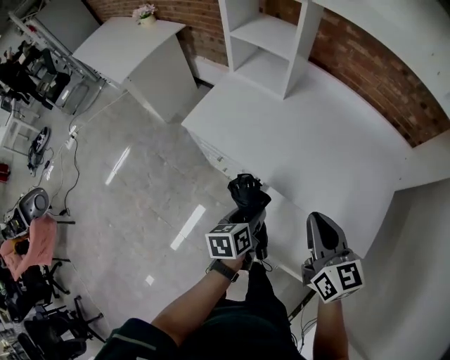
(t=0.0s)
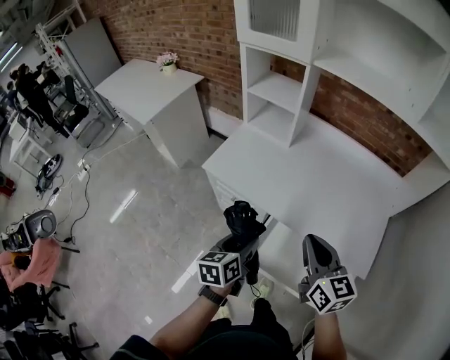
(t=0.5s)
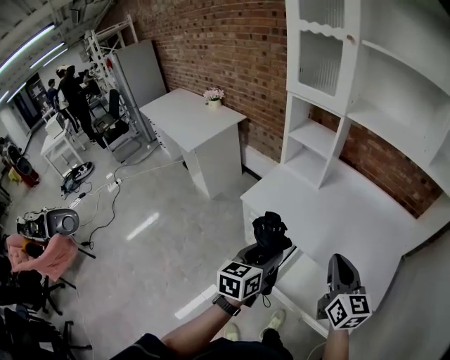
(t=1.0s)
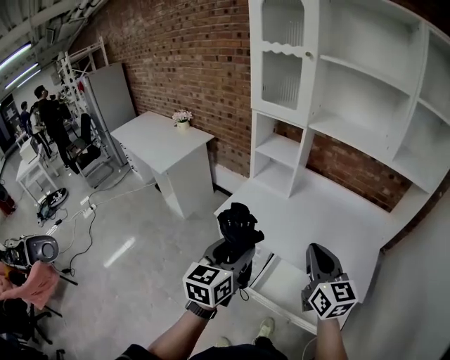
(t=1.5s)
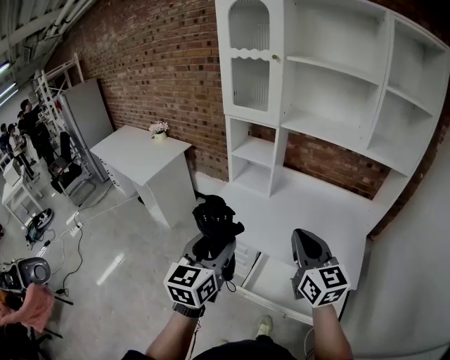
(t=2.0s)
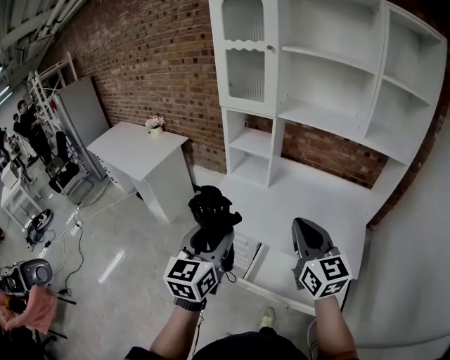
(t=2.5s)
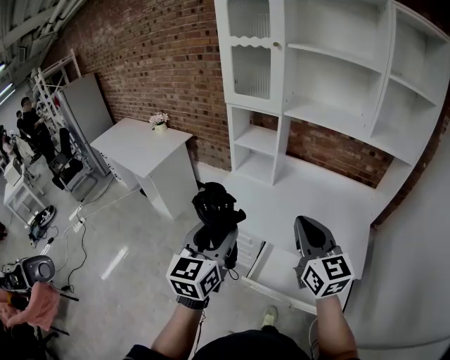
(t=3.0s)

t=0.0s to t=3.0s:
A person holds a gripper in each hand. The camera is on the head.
t=0.0s to t=1.5s: The left gripper moves upward and to the left, roughly 35 cm, and swivels approximately 40 degrees. The right gripper is displaced upward and to the left by some 20 cm.
t=1.5s to t=3.0s: Both grippers move upward, approximately 5 cm.

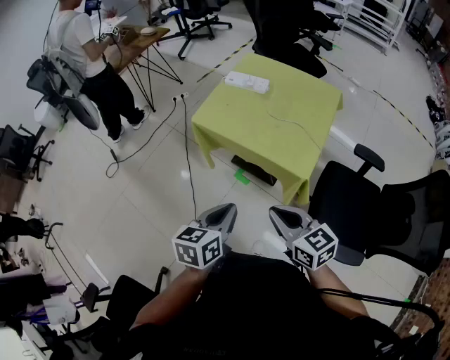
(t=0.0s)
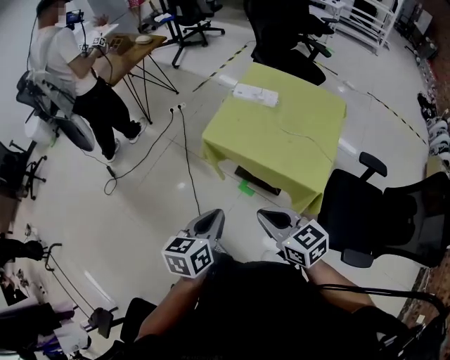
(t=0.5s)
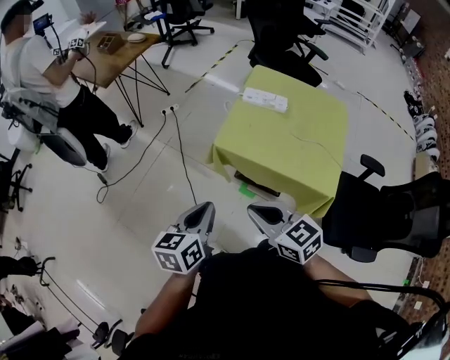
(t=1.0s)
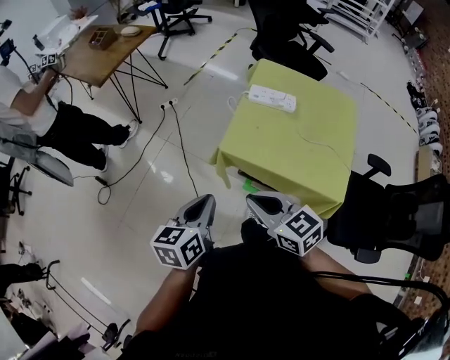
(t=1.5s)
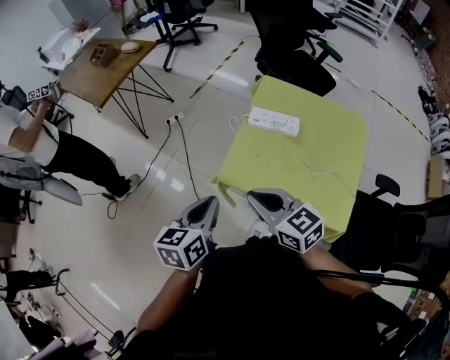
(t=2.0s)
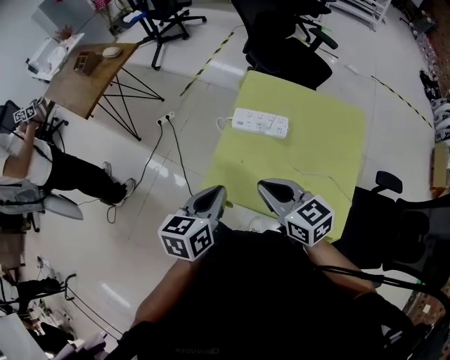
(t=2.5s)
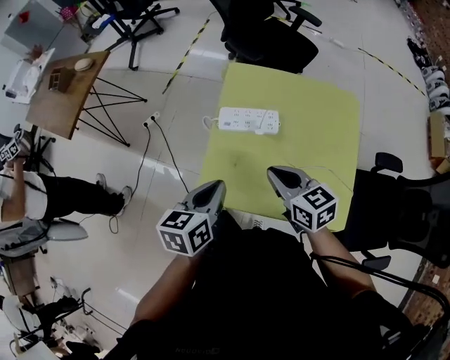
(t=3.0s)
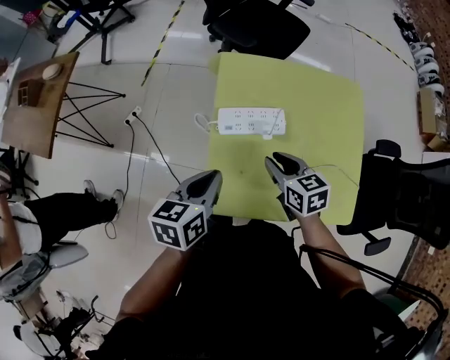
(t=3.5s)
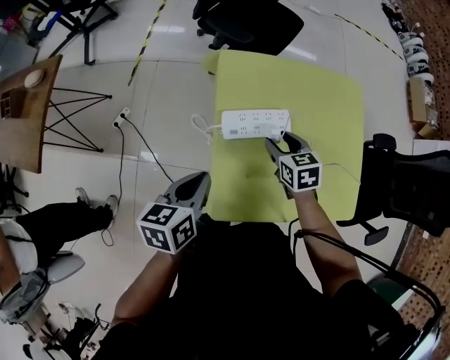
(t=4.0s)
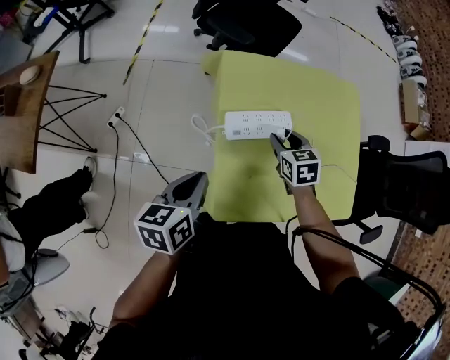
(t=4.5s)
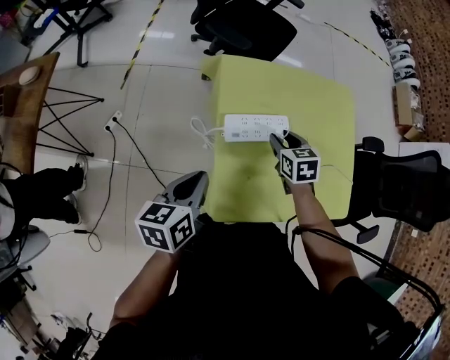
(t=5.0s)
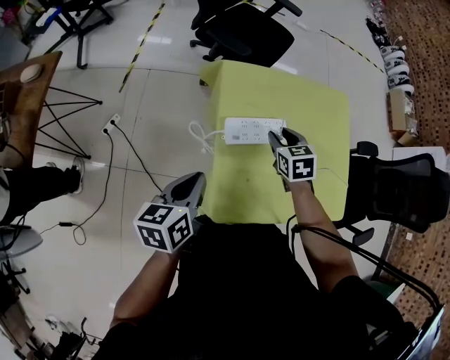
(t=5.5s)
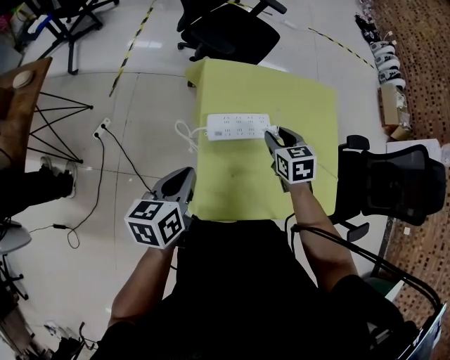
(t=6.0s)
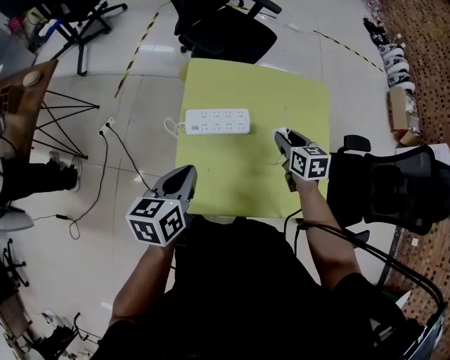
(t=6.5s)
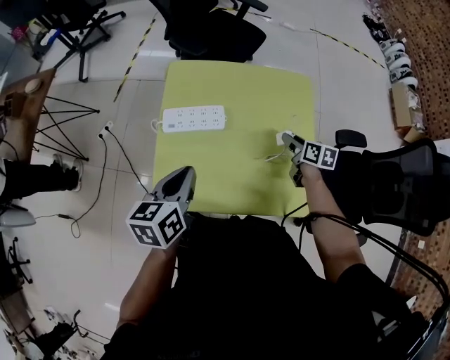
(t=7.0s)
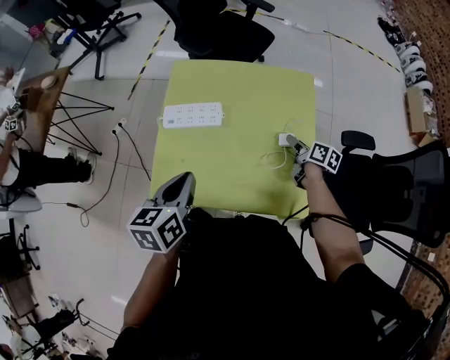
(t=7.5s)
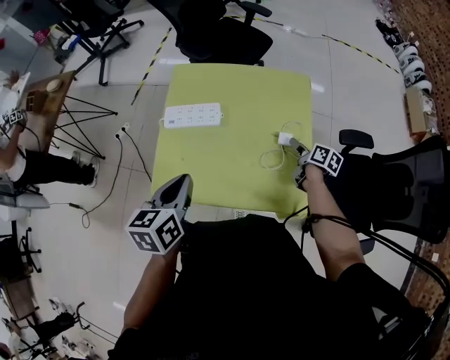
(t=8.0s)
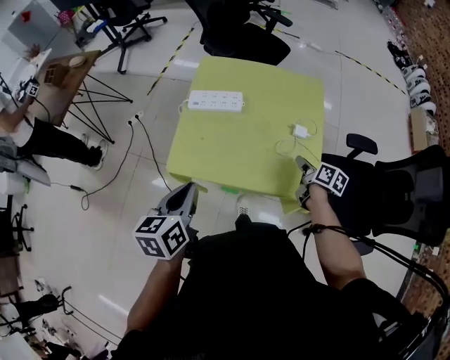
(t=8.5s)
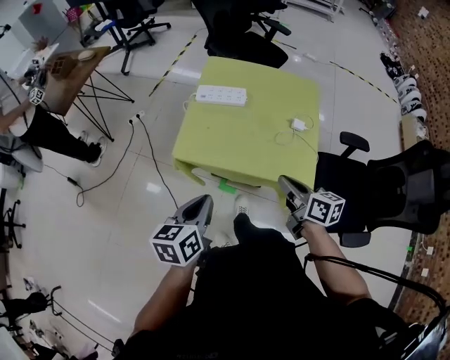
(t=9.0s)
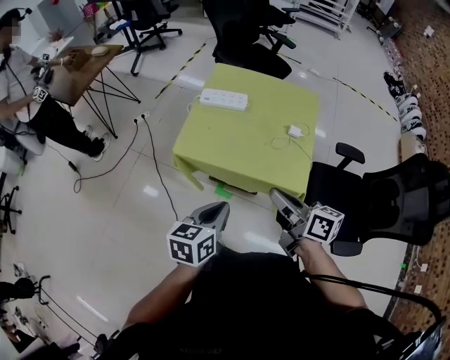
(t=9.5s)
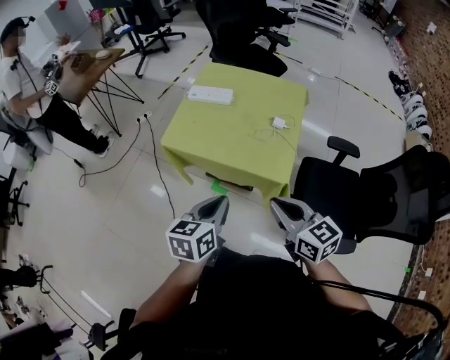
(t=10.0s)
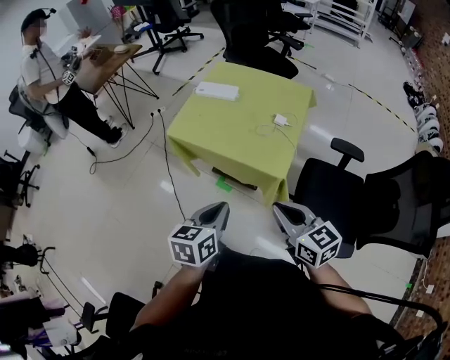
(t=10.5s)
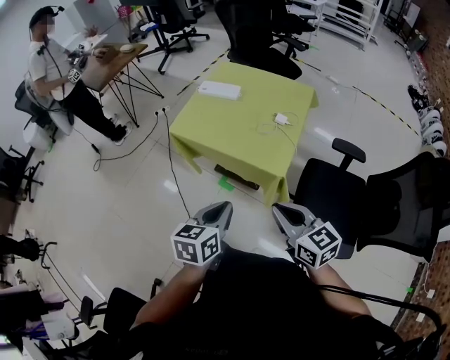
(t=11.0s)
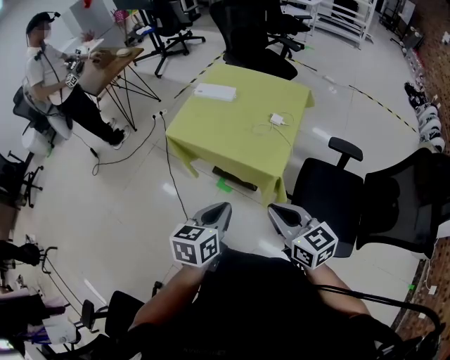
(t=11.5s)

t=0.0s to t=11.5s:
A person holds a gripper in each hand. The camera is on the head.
t=0.0s to t=2.0s: Both grippers move forward and to the left, some 40 cm.
t=2.0s to t=4.0s: The right gripper moves some 40 cm, changes its angle by roughly 50 degrees, and opens up, while the left gripper ends up about 30 cm from where it was, and turns by approximately 30 degrees.
t=4.0s to t=6.0s: The right gripper ends up approximately 5 cm from where it was.
t=6.0s to t=7.5s: Both grippers travel together to the right, some 25 cm. The right gripper rolls clockwise, seen from behind, by roughly 50 degrees.
t=7.5s to t=9.5s: The left gripper shifts roughly 30 cm backward; the right gripper travels backward, upward and to the left by about 50 cm, turns by approximately 40 degrees, and closes.
t=9.5s to t=11.5s: The right gripper moves backward and to the right, roughly 20 cm, and rotates roughly 40 degrees; the left gripper goes approximately 20 cm to the right and backward.

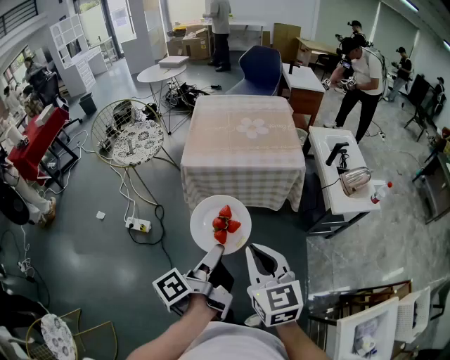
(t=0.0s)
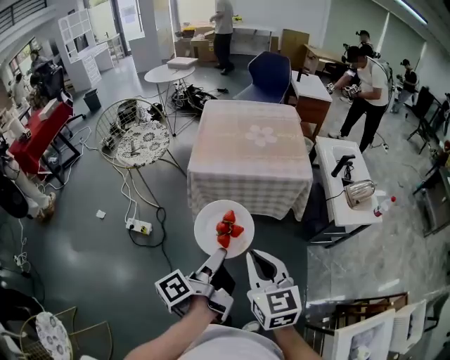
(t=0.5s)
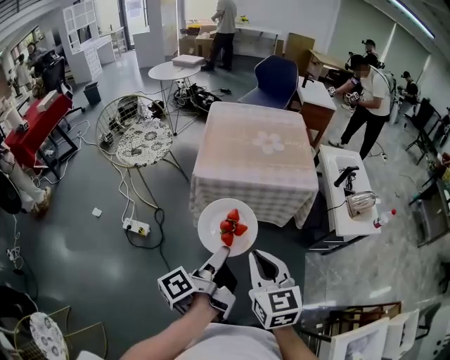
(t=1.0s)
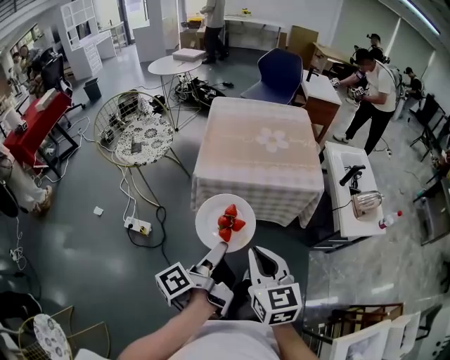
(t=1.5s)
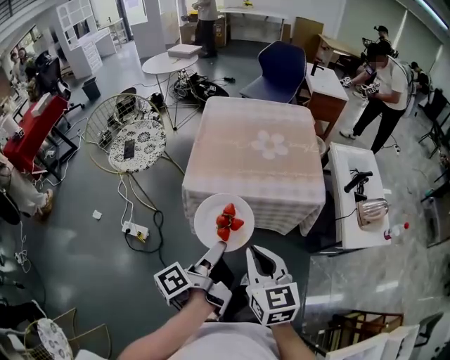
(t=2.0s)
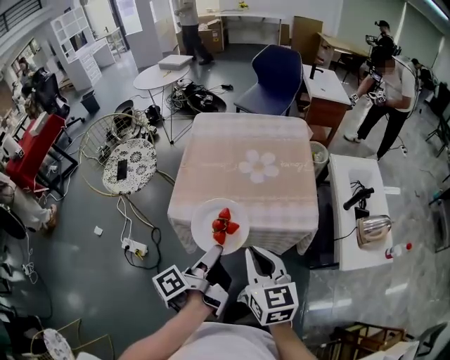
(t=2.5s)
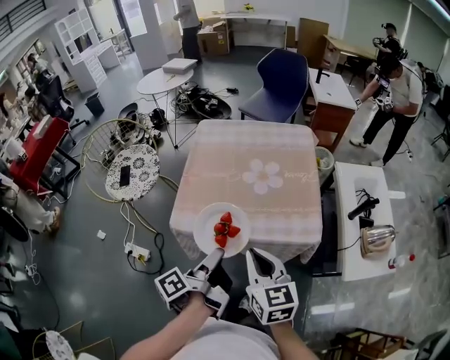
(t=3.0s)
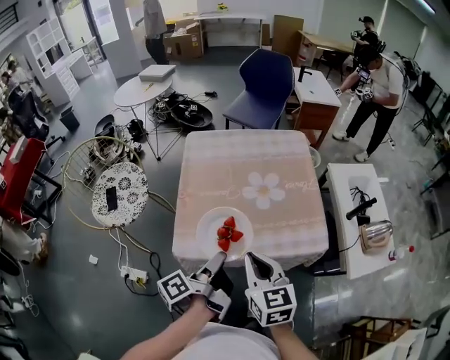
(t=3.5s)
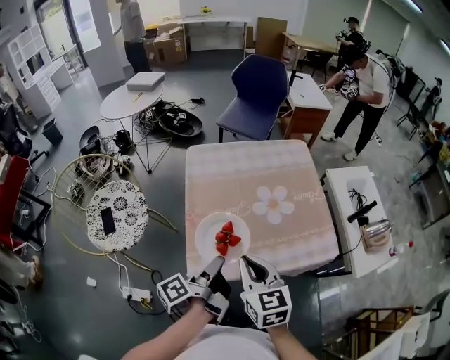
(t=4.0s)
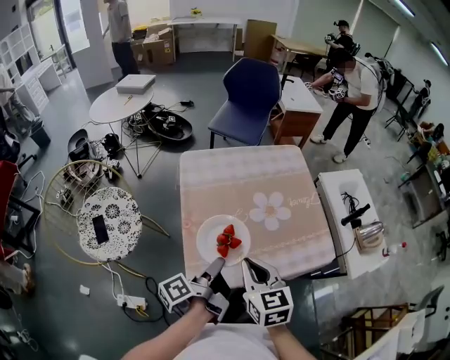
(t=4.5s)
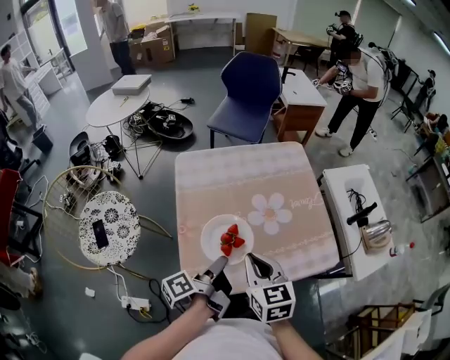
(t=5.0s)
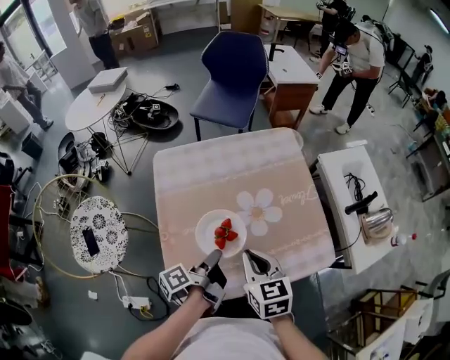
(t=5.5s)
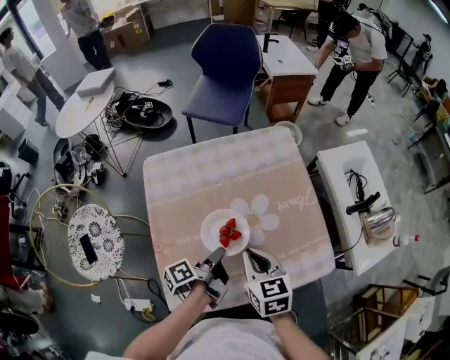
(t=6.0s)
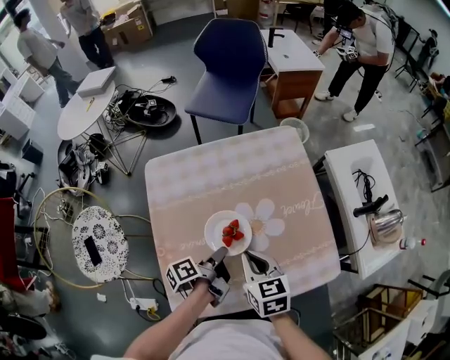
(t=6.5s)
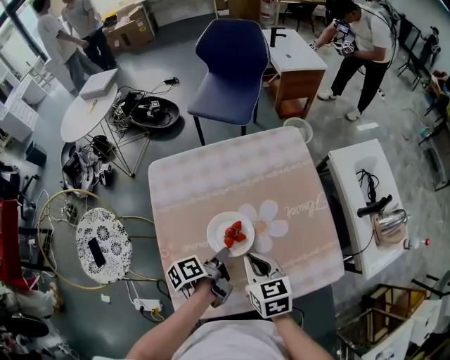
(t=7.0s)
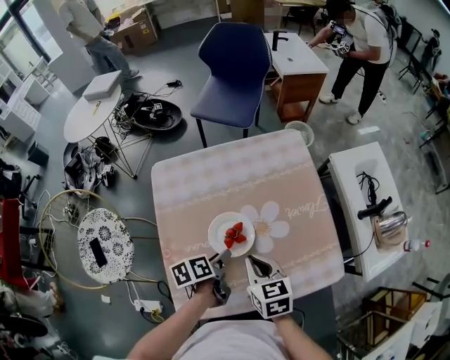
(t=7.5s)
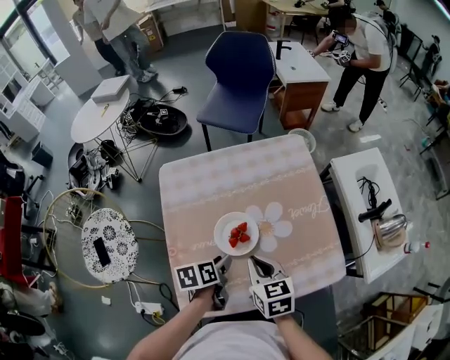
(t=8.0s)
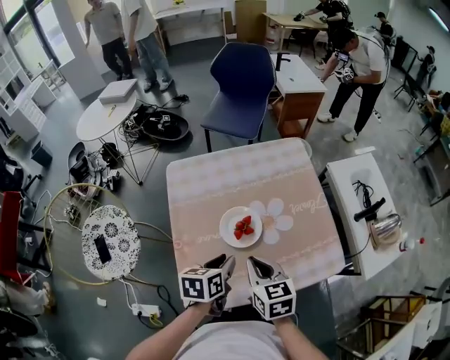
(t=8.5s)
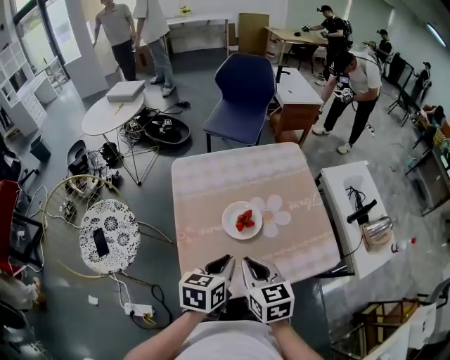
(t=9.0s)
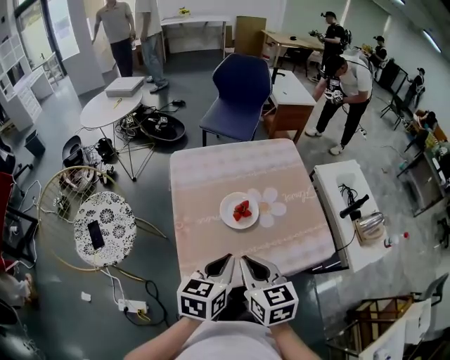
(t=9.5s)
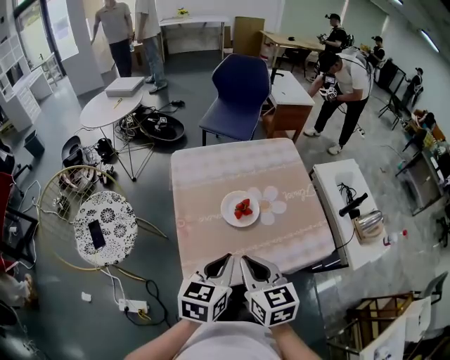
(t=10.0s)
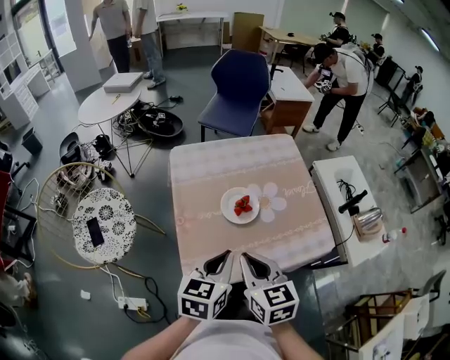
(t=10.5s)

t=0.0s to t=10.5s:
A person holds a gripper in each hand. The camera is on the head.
t=0.0s to t=2.0s: The right gripper shifts by about 20 cm.
t=2.0s to t=4.0s: The right gripper ends up some 30 cm from where it was.
t=4.0s to t=6.5s: The right gripper shifts by about 25 cm.
t=6.5s to t=8.5s: The right gripper ends up approximately 10 cm from where it was.
t=8.5s to t=10.5s: The right gripper shifts by some 15 cm.

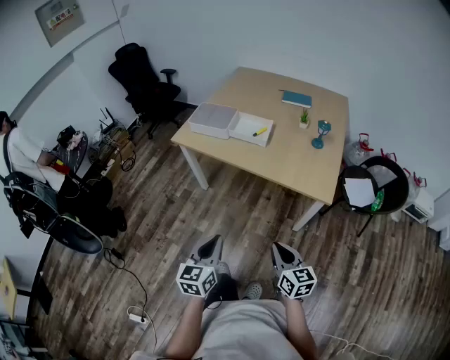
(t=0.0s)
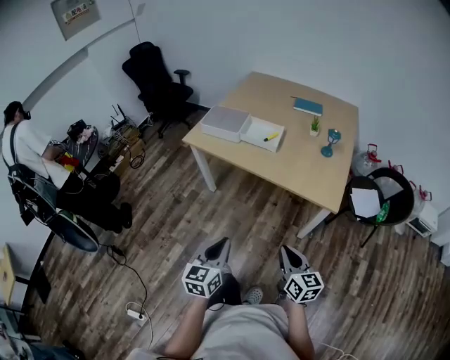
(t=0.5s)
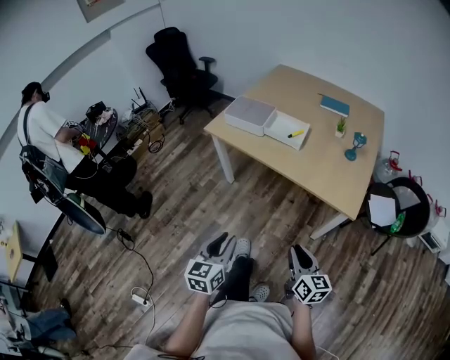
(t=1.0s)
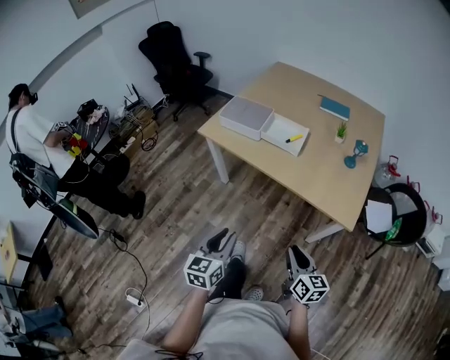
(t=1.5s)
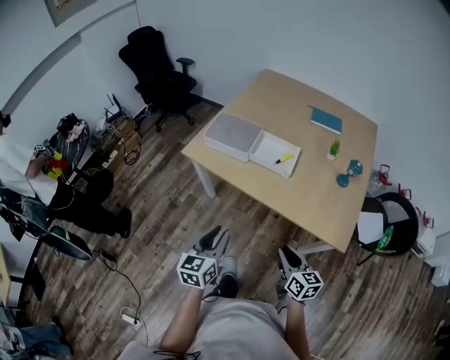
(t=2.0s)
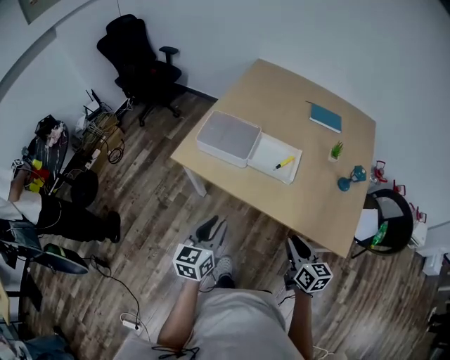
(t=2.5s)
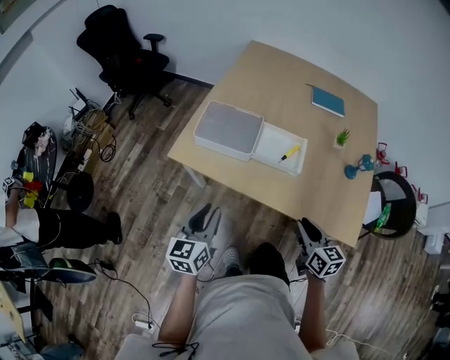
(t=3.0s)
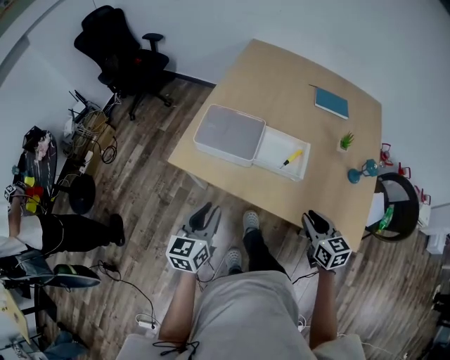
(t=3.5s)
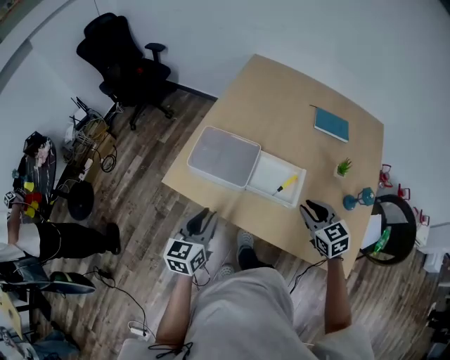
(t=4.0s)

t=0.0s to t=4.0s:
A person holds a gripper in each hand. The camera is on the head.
t=0.0s to t=2.0s: The grippers both shift forward by roughly 20 cm. The left gripper opens up. Meanwhile the right gripper opens its fingers.
t=2.0s to t=4.0s: Both grippers move forward, approximately 30 cm. The right gripper swivels roughly 40 degrees.
